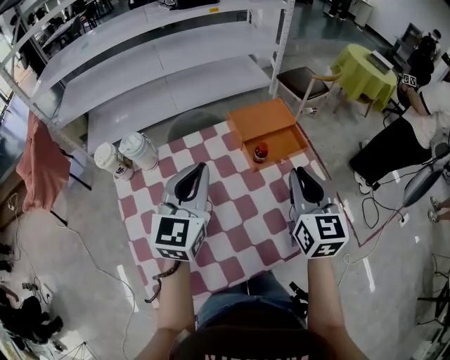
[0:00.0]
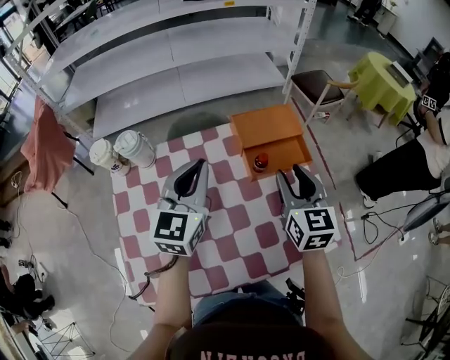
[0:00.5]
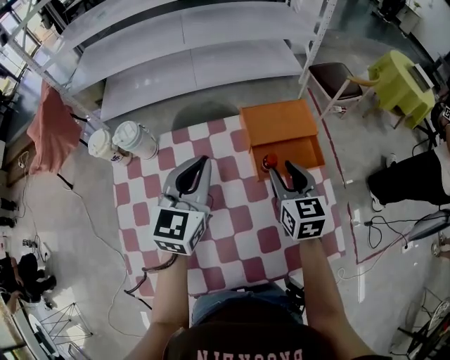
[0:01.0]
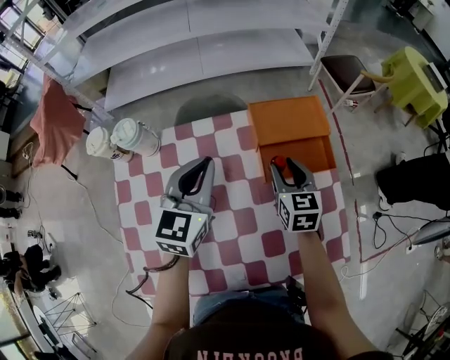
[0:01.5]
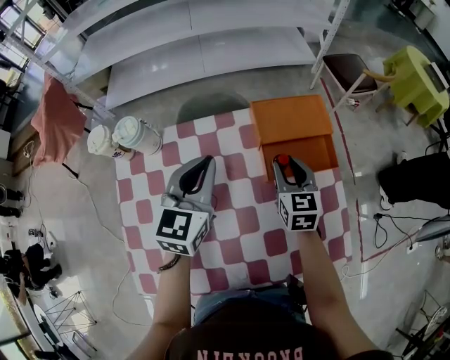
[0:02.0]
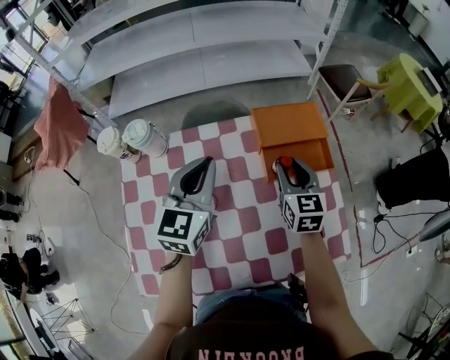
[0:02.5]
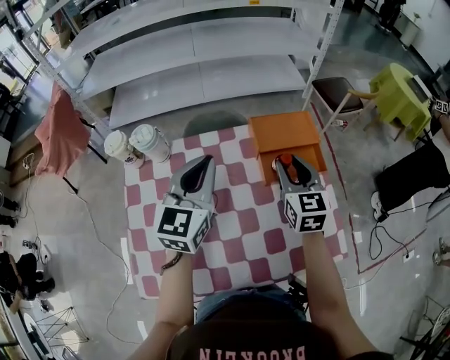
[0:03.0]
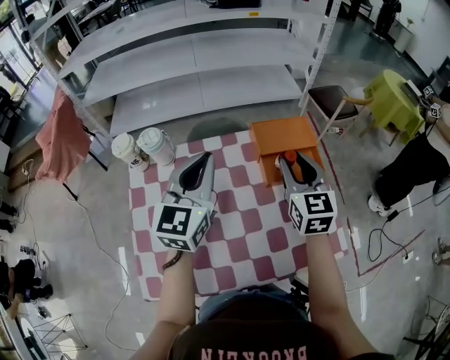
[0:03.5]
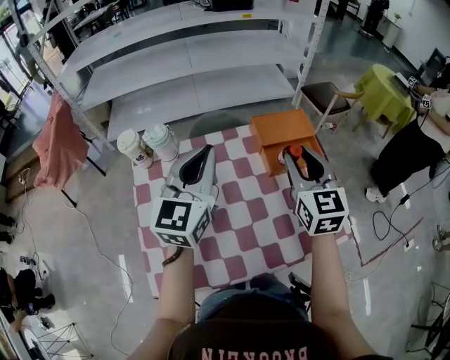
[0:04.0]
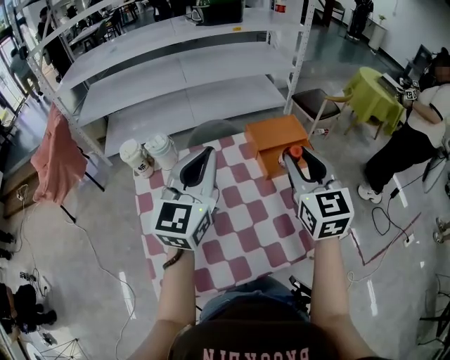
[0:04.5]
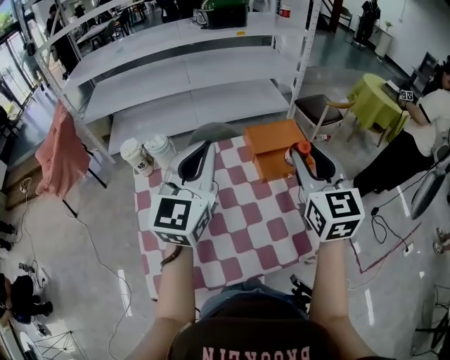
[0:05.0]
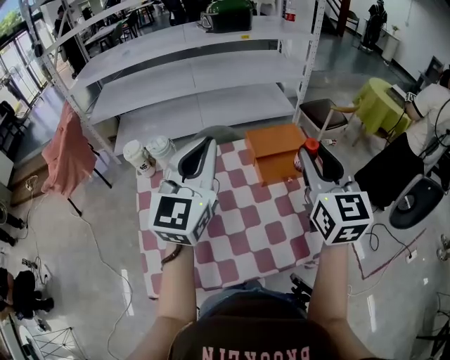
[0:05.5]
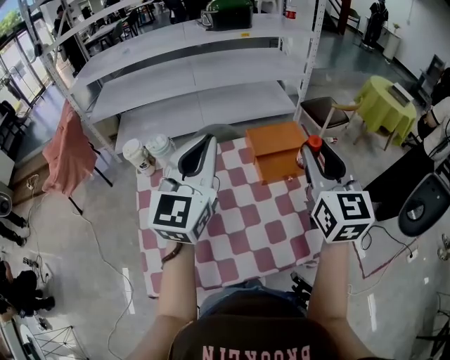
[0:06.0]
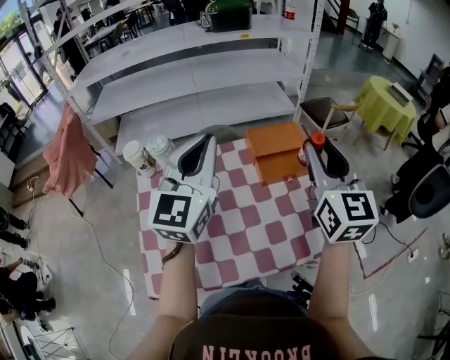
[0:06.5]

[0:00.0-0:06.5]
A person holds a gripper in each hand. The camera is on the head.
0:00.0 to 0:02.0: The right gripper shifts roughly 25 cm downward and forward, changes its angle by approximately 20 degrees, and opens its fingers. Meanwhile the left gripper travels forward and downward by about 15 cm.
0:02.0 to 0:04.5: The grippers both shift upward and backward by roughly 25 cm. The left gripper rotates about 20 degrees, while the right gripper swivels some 20 degrees.
0:04.5 to 0:06.5: The right gripper travels upward and to the right by roughly 10 cm. Meanwhile the left gripper is displaced upward by about 5 cm.

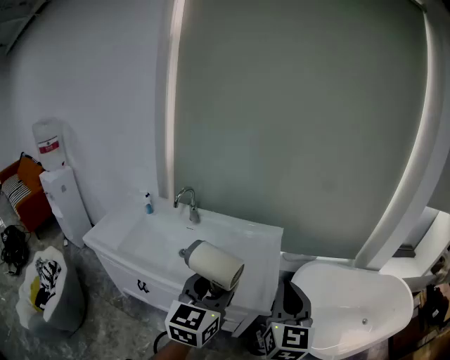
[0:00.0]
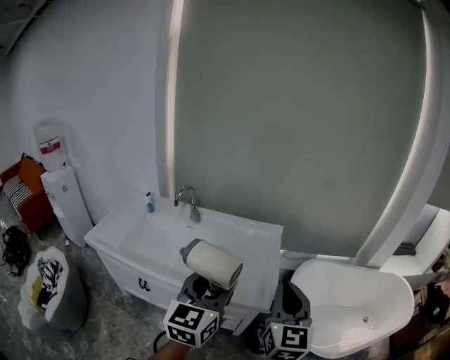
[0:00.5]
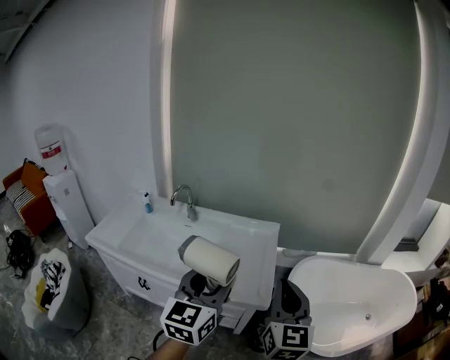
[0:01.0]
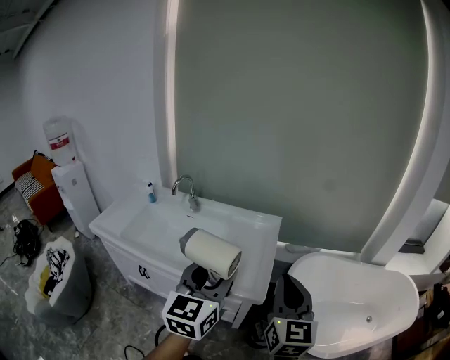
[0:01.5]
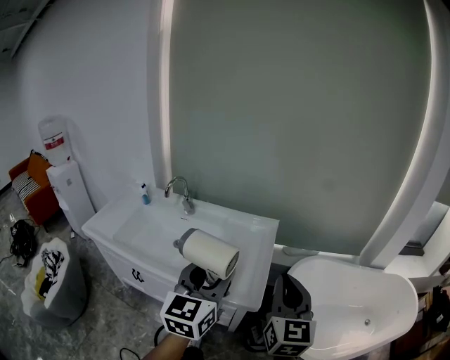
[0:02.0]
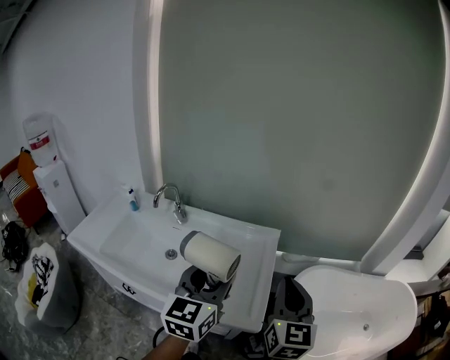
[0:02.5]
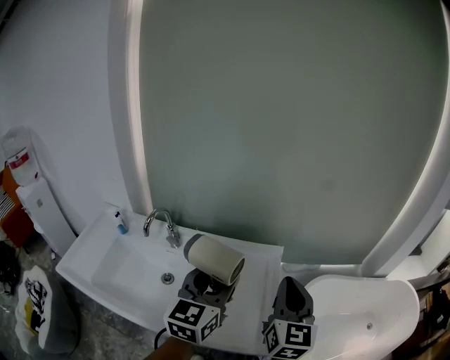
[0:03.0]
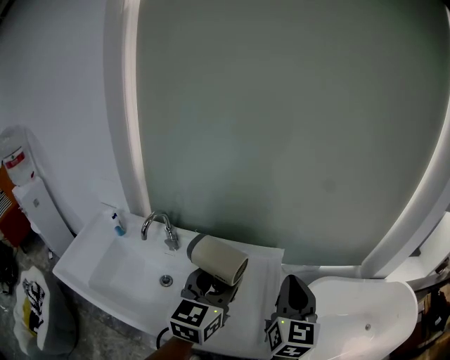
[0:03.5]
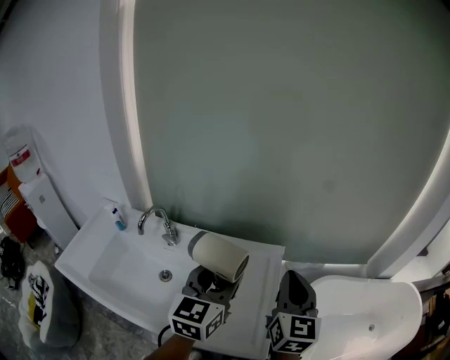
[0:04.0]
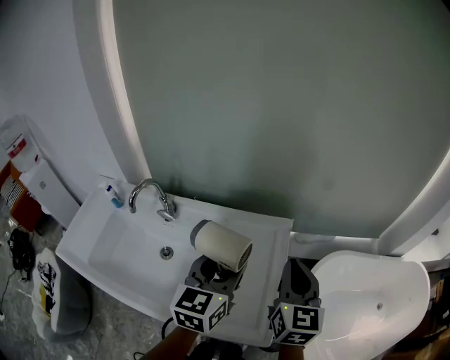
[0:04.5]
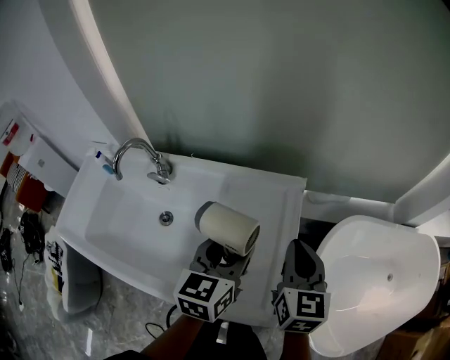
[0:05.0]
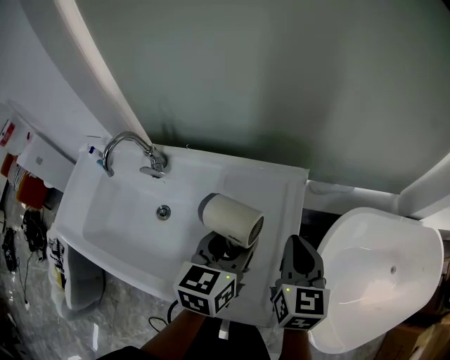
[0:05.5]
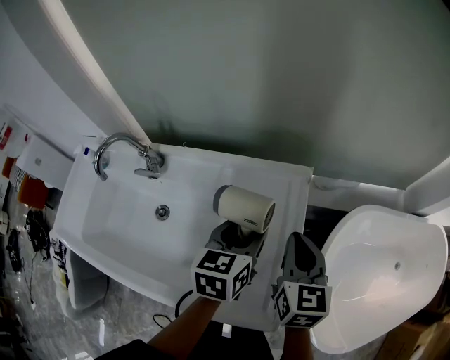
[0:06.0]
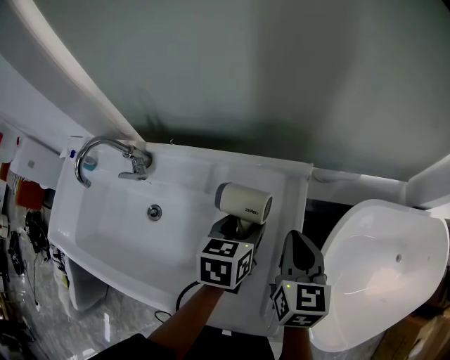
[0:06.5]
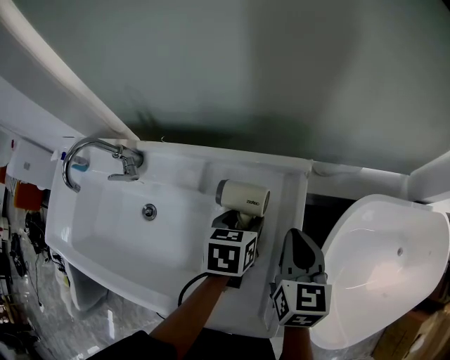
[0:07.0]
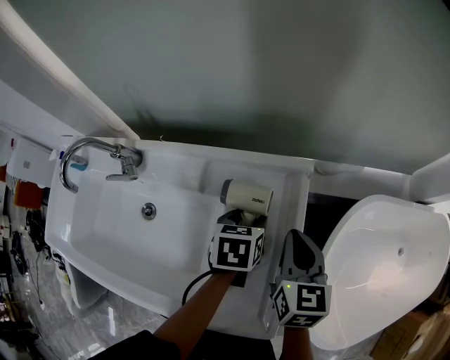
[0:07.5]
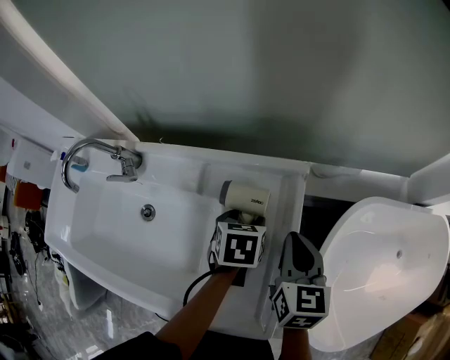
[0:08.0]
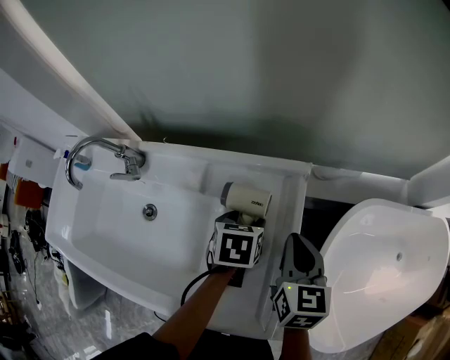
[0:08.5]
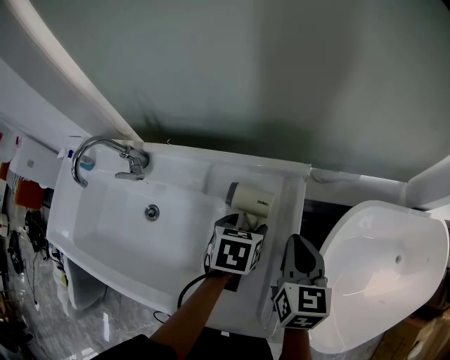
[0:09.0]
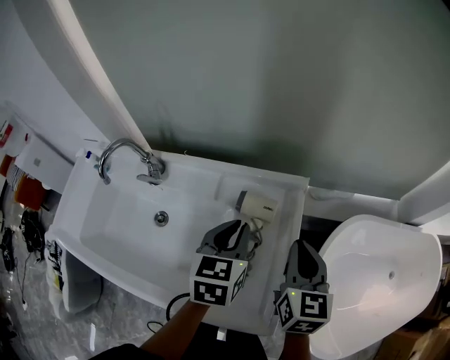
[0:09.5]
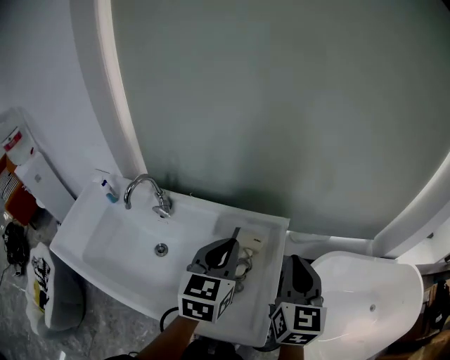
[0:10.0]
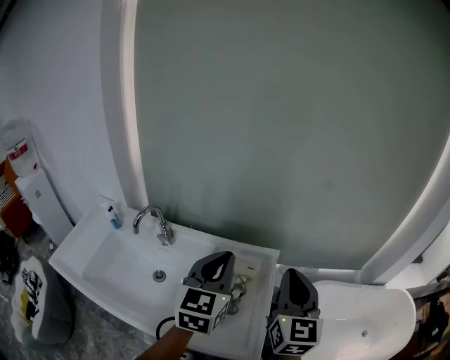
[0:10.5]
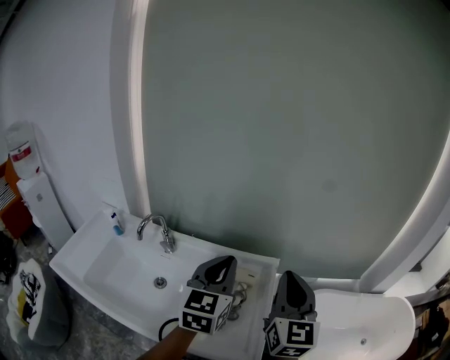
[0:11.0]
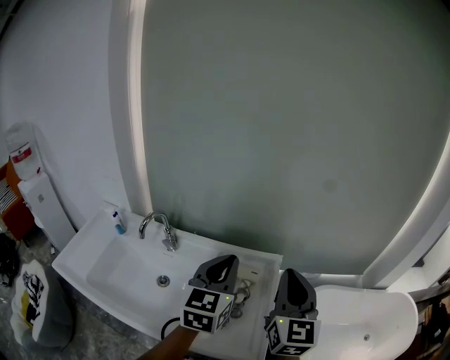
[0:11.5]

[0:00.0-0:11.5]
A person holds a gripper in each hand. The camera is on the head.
0:00.0 to 0:02.0: Both grippers move to the right, some 5 cm.
0:02.0 to 0:04.0: Both grippers travel together forward, approximately 25 cm.
0:04.0 to 0:06.0: Both grippers move downward, about 20 cm. The right gripper changes its angle by roughly 20 degrees, while the left gripper changes its angle by about 30 degrees.
0:06.0 to 0:07.5: The right gripper shifts some 5 cm downward. The left gripper shifts roughly 15 cm downward, and swivels about 20 degrees.
0:07.5 to 0:09.5: The right gripper shifts roughly 10 cm upward; the left gripper goes about 15 cm upward, rotates some 20 degrees, and closes up.
0:09.5 to 0:11.5: Both grippers travel together upward, roughly 20 cm. The left gripper changes its angle by about 30 degrees; the right gripper changes its angle by some 30 degrees.

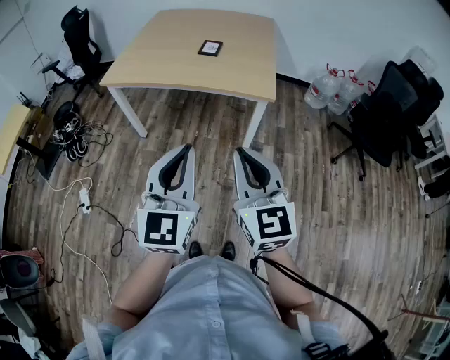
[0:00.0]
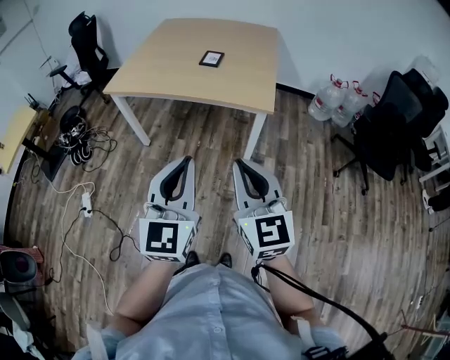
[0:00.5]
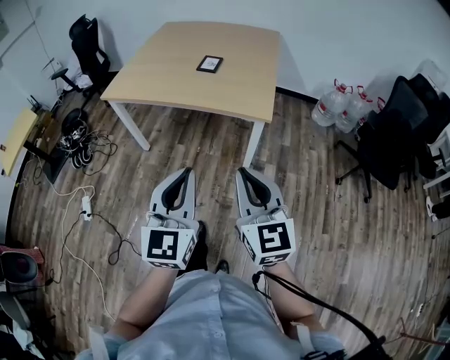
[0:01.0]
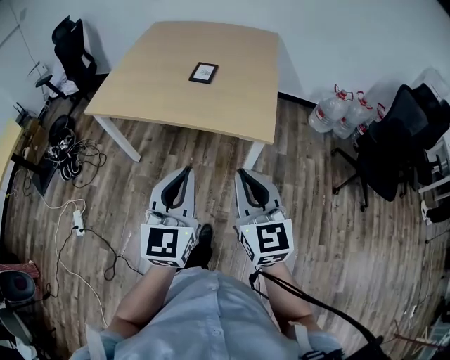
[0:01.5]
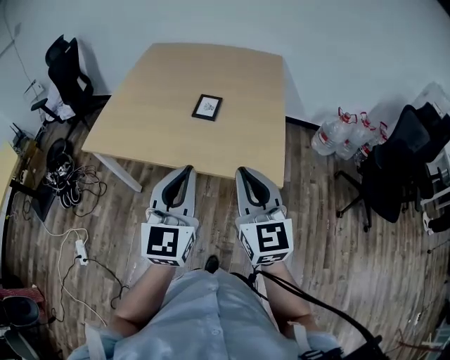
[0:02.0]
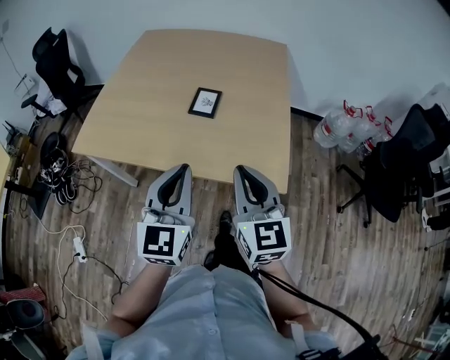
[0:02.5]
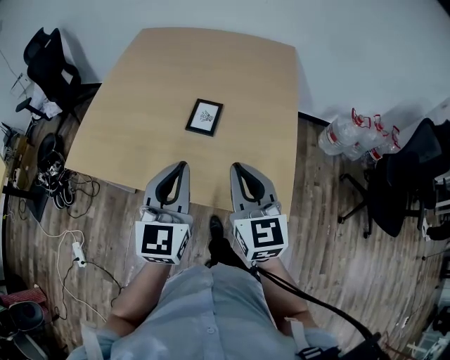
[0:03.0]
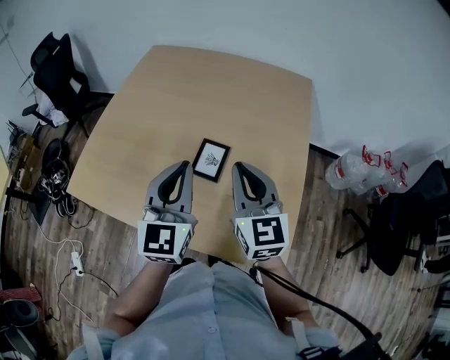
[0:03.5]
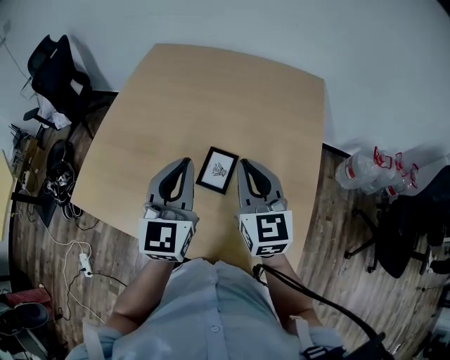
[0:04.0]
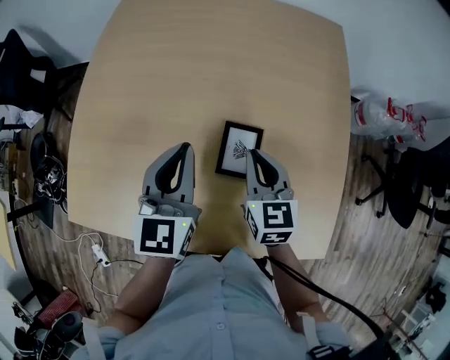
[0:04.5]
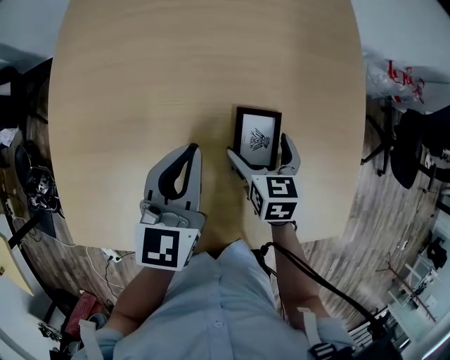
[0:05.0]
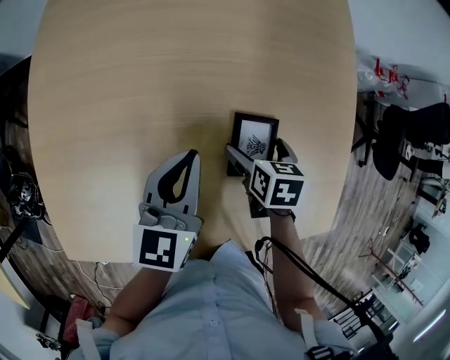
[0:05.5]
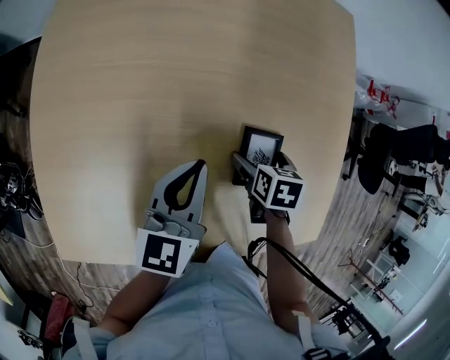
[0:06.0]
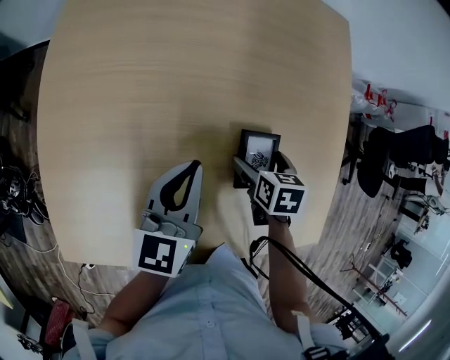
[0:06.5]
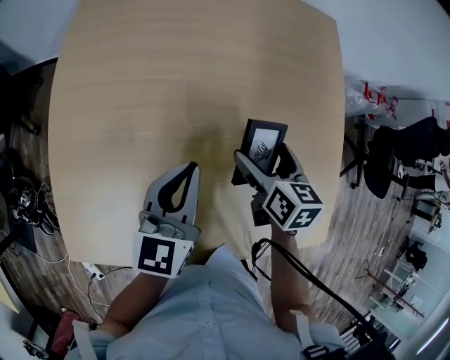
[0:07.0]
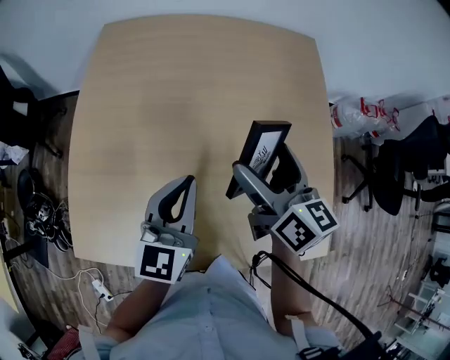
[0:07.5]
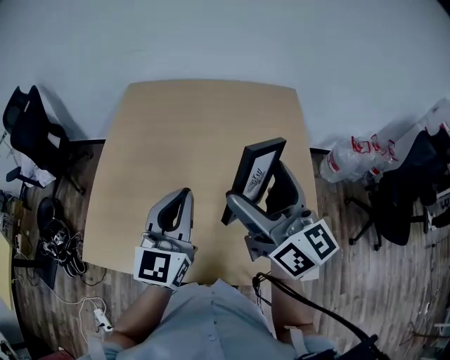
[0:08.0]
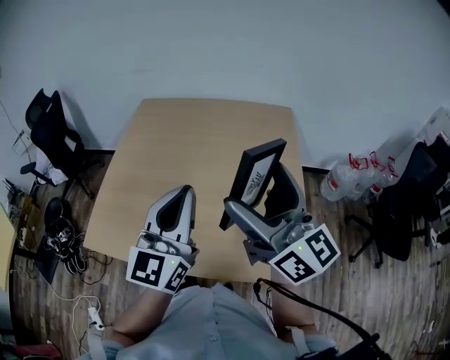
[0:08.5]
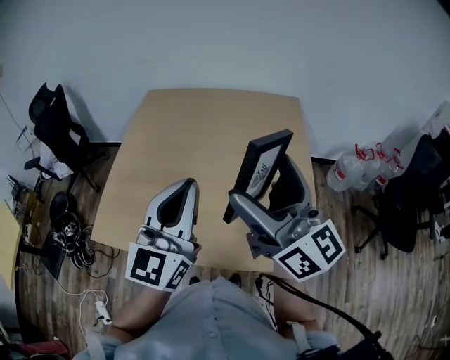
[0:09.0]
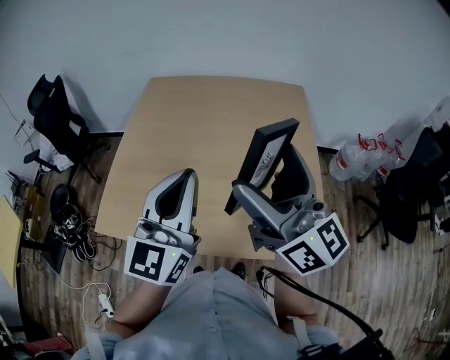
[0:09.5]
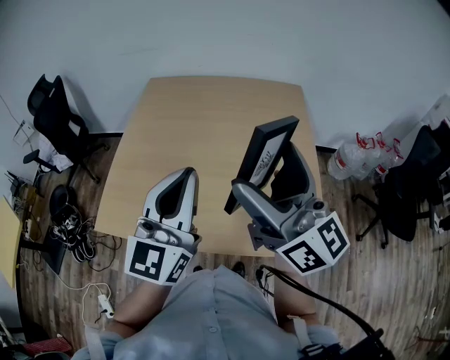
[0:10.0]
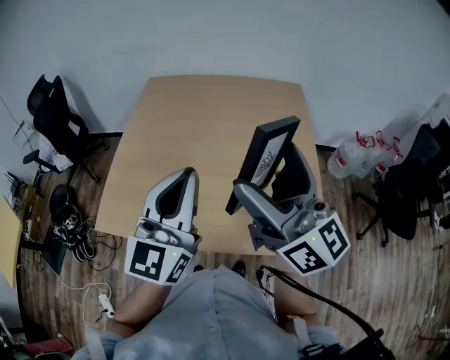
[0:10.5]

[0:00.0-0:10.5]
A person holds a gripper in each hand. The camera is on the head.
0:00.0 to 0:02.0: The grippers both shift forward by some 30 cm.
0:02.0 to 0:04.0: The two grippers go approximately 35 cm forward.
0:04.0 to 0:06.5: The right gripper shifts about 25 cm downward, tips its fingers downward by some 60 degrees, and opens its fingers. Meanwhile the left gripper moves downward, to the left and forward, approximately 15 cm, and changes its angle by roughly 40 degrees.
0:06.5 to 0:08.5: The left gripper heads upward and backward, covering about 25 cm, and changes its angle by approximately 40 degrees. Meanwhile the right gripper moves upward, approximately 40 cm, and tips its fingers upward by roughly 80 degrees.
0:08.5 to 0:10.5: The right gripper shifts by roughly 5 cm; the left gripper changes place by about 5 cm.
